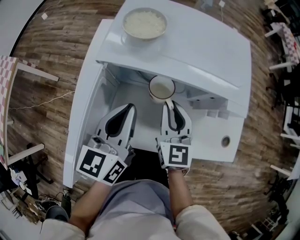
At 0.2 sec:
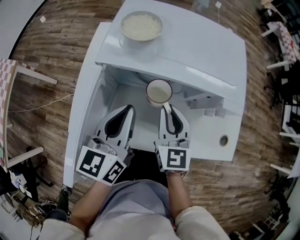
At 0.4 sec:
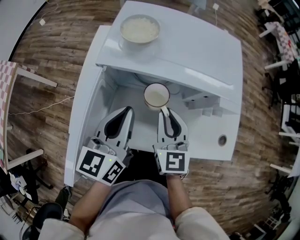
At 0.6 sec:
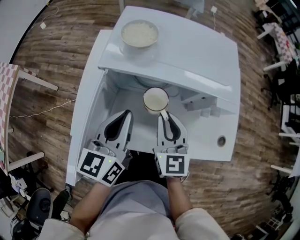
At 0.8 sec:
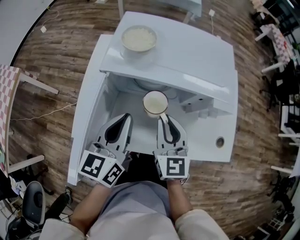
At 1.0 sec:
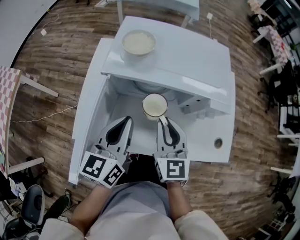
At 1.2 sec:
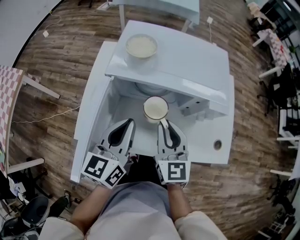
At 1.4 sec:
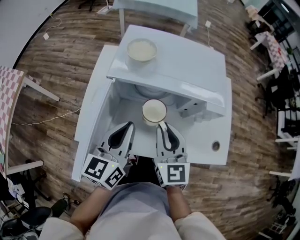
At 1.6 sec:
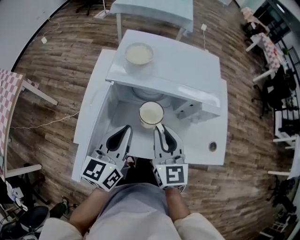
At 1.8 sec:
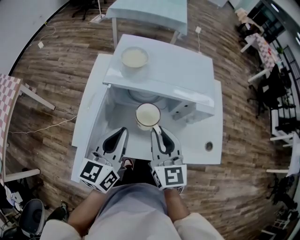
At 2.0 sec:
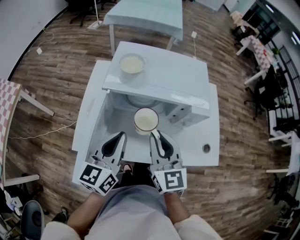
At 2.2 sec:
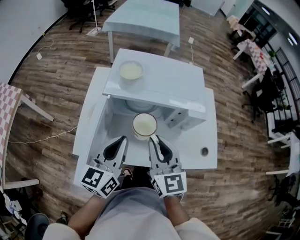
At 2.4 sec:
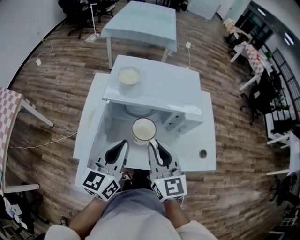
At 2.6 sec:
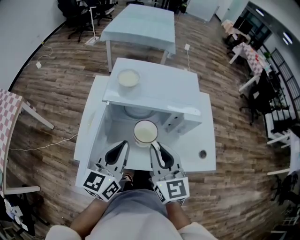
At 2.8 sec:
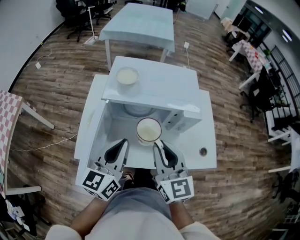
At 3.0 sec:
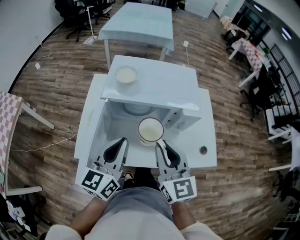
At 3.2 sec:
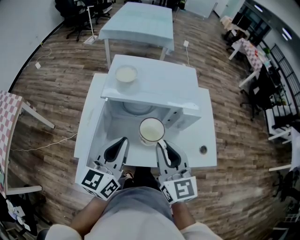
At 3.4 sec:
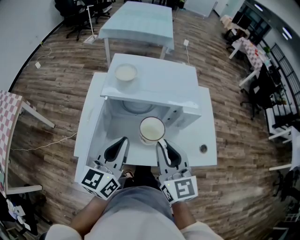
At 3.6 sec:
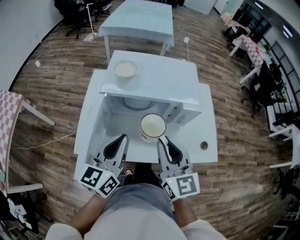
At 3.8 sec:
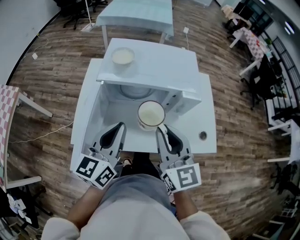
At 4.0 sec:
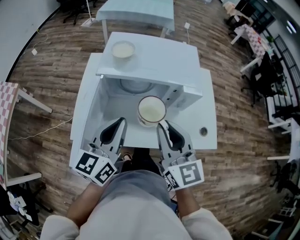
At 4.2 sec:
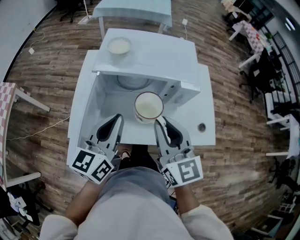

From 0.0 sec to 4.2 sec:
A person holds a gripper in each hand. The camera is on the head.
From 0.0 sec to 1.4 sec: The left gripper changes place by approximately 5 cm, while the right gripper shifts approximately 10 cm upward and backward.
From 1.4 sec to 2.8 sec: The left gripper moves upward, approximately 5 cm, while the right gripper goes roughly 10 cm upward and backward.
From 2.8 sec to 4.2 sec: The grippers stay close to where they were, moving slightly.

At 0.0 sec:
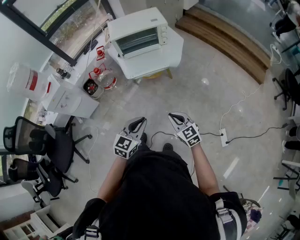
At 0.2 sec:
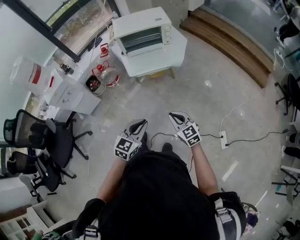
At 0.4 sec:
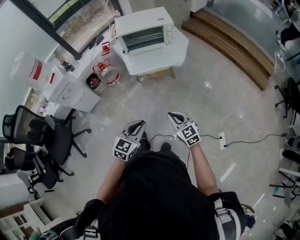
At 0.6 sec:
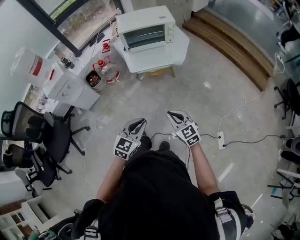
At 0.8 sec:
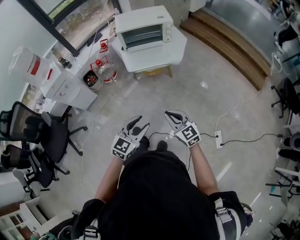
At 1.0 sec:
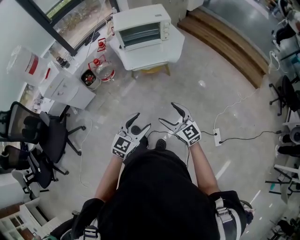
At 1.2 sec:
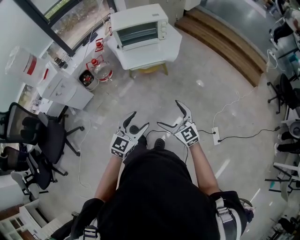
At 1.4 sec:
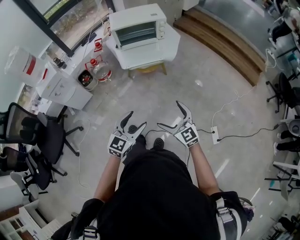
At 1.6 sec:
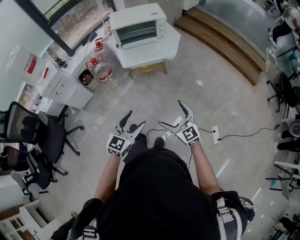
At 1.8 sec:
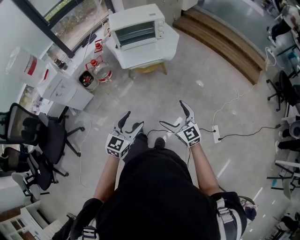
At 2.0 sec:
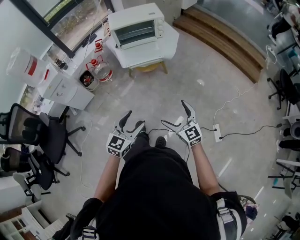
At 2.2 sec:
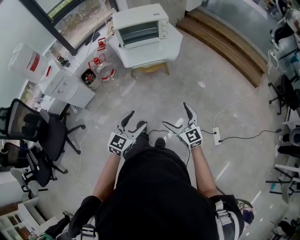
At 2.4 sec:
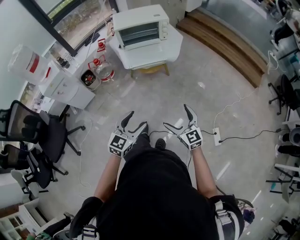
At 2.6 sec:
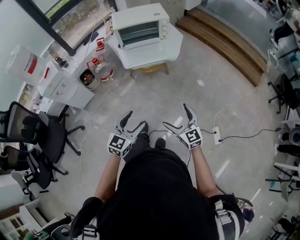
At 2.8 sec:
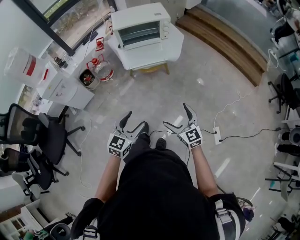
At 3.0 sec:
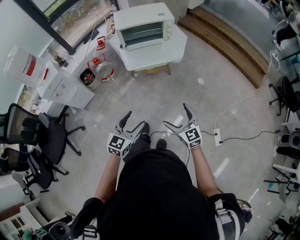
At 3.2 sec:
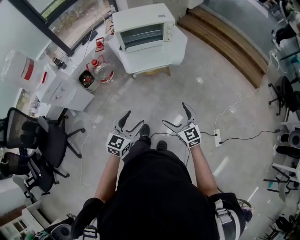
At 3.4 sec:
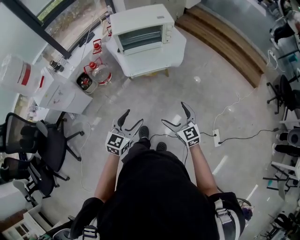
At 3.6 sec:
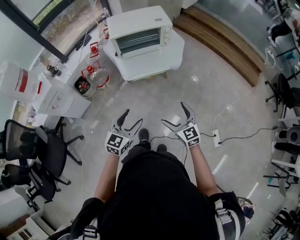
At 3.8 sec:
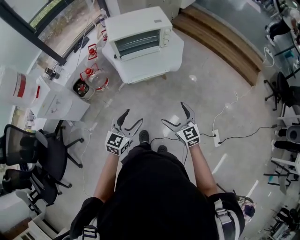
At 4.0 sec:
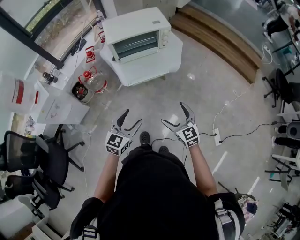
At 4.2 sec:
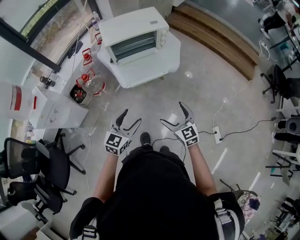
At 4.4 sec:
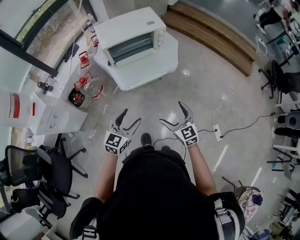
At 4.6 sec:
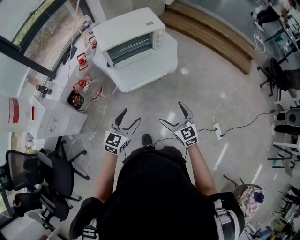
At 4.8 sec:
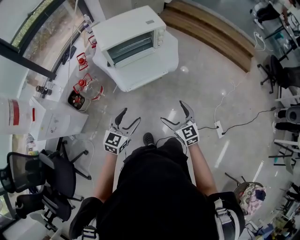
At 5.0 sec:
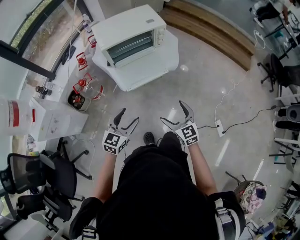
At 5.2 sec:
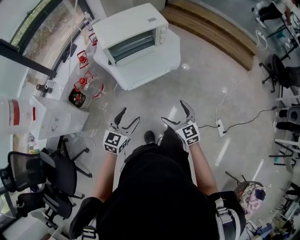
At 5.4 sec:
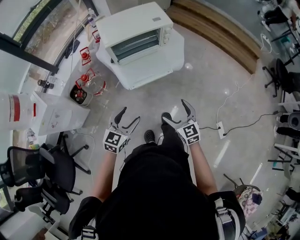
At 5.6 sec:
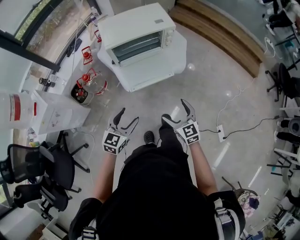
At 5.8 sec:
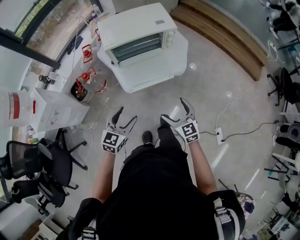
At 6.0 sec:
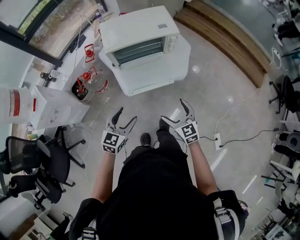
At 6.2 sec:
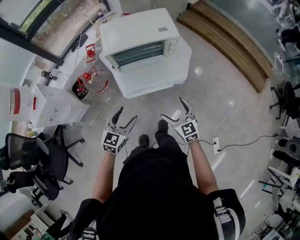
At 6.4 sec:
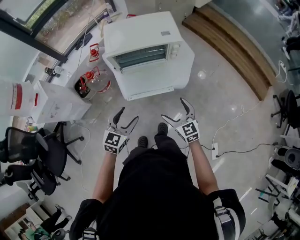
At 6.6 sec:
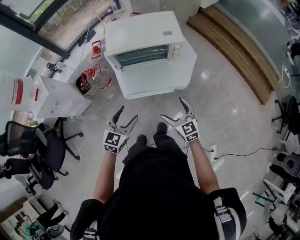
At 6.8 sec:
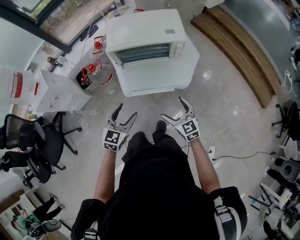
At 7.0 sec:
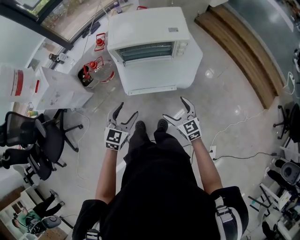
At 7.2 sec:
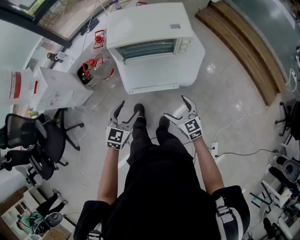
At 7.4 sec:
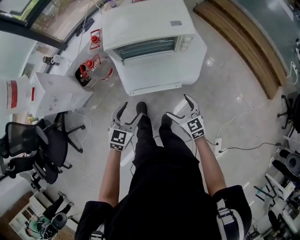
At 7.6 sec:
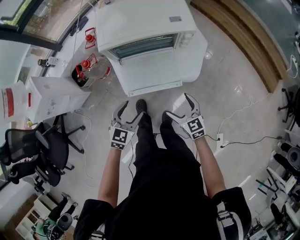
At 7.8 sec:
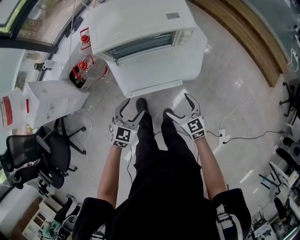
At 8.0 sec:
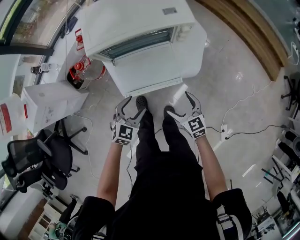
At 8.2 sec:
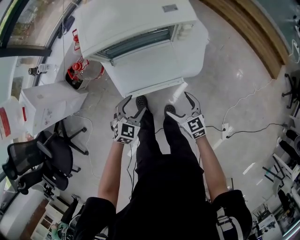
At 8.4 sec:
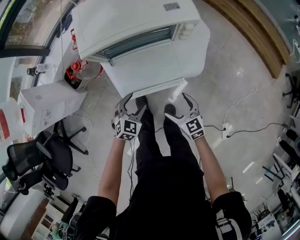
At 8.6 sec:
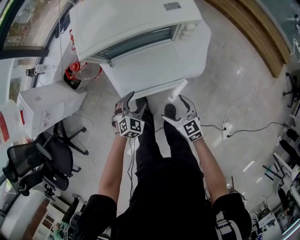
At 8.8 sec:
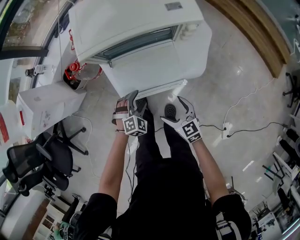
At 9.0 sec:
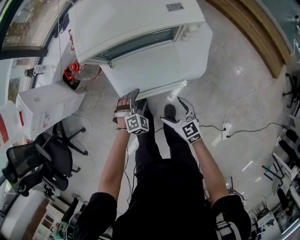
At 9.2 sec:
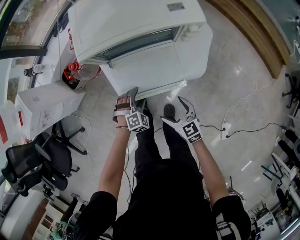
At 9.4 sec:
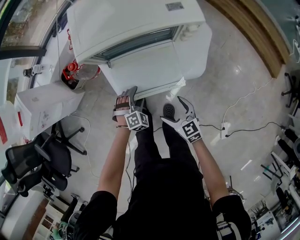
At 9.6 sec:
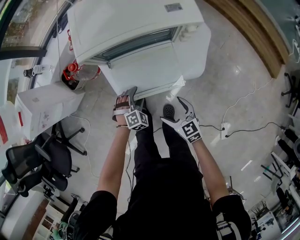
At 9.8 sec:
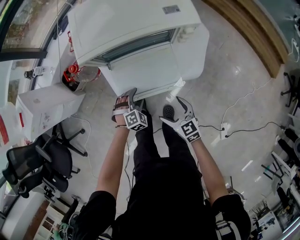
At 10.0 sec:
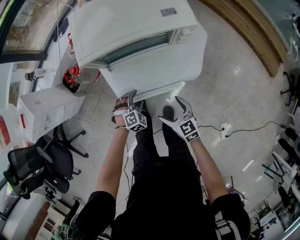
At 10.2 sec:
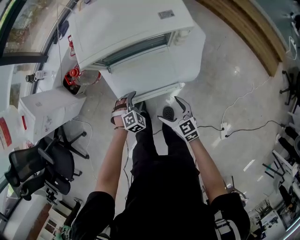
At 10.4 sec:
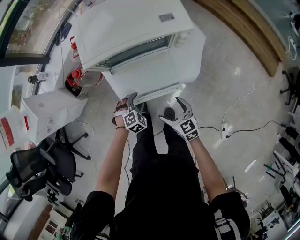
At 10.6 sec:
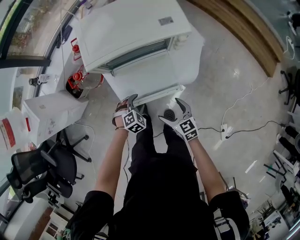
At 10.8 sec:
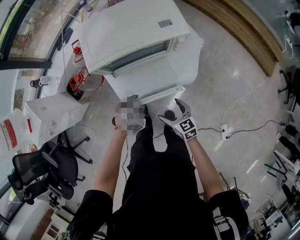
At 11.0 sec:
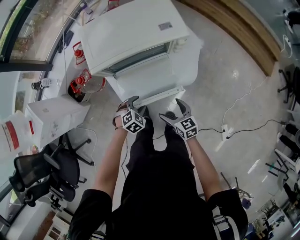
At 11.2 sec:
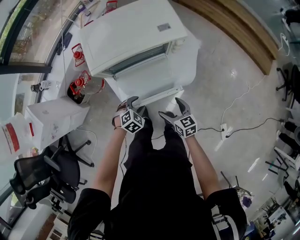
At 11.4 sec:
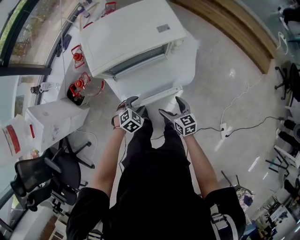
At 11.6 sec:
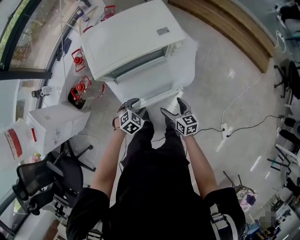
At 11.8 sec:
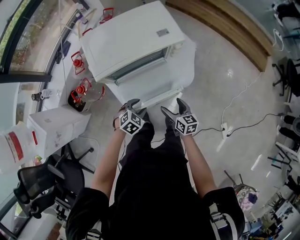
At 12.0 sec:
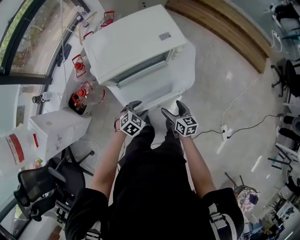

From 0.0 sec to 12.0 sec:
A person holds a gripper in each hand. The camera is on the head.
From 0.0 sec to 1.6 sec: The two grippers go about 10 cm backward. The left gripper opens its fingers; the right gripper opens its fingers.
From 1.6 sec to 3.0 sec: The two grippers go some 5 cm forward.
From 3.0 sec to 4.4 sec: Both grippers move forward and to the left, about 20 cm.
From 4.4 sec to 6.0 sec: Both grippers move forward, some 15 cm.
From 6.0 sec to 7.6 sec: The right gripper is displaced forward and downward by roughly 15 cm. The left gripper travels forward, downward and to the right by about 15 cm.
From 7.6 sec to 9.0 sec: The right gripper shifts approximately 10 cm downward, while the left gripper is displaced downward and forward by about 20 cm, and rotates around the line of its fingers by some 40 degrees, clockwise from behind.
From 9.0 sec to 10.4 sec: The grippers move only a little.
From 10.4 sec to 12.0 sec: The left gripper is displaced upward by some 10 cm, and swivels about 20 degrees. Meanwhile the right gripper rotates approximately 30 degrees.

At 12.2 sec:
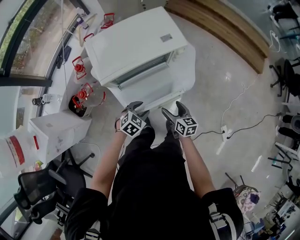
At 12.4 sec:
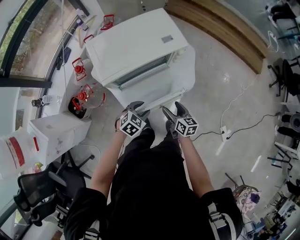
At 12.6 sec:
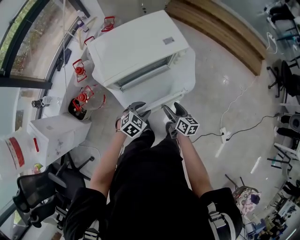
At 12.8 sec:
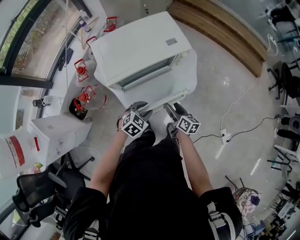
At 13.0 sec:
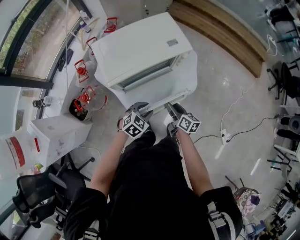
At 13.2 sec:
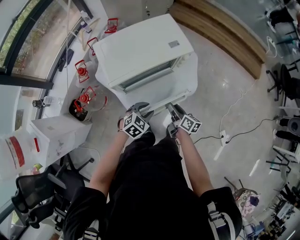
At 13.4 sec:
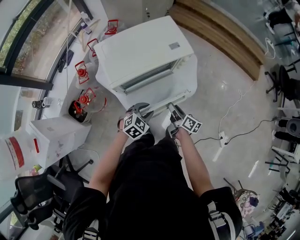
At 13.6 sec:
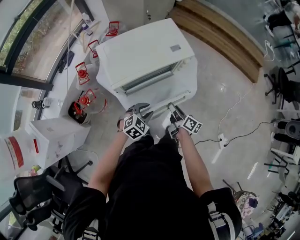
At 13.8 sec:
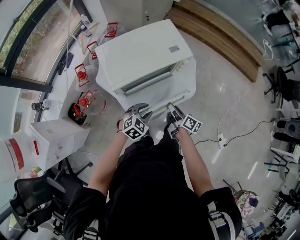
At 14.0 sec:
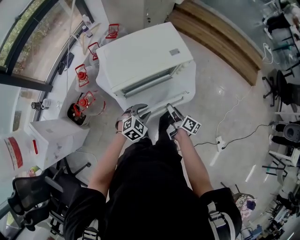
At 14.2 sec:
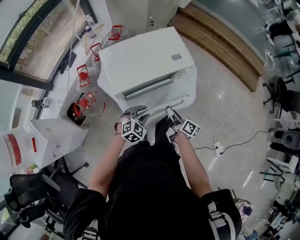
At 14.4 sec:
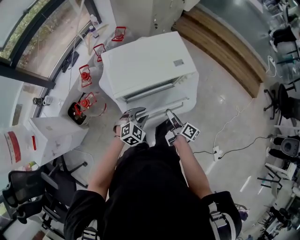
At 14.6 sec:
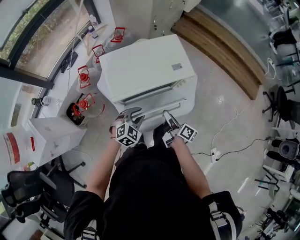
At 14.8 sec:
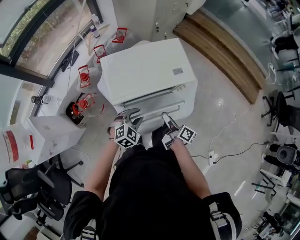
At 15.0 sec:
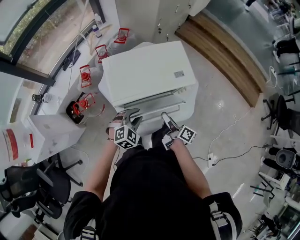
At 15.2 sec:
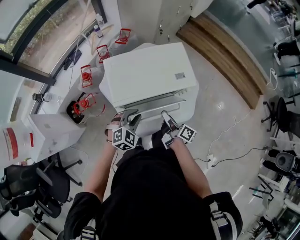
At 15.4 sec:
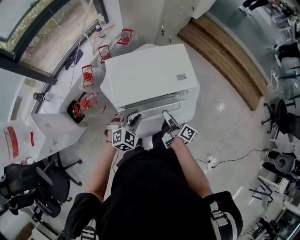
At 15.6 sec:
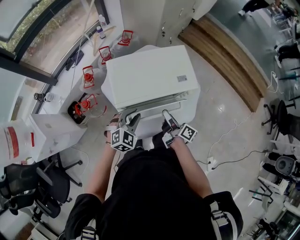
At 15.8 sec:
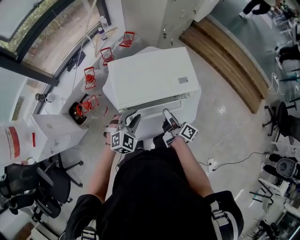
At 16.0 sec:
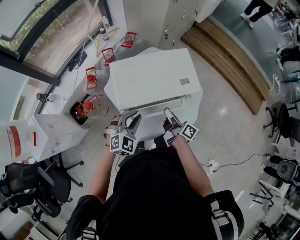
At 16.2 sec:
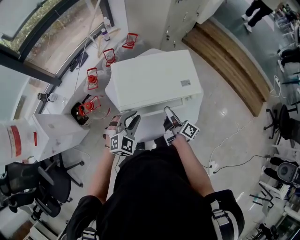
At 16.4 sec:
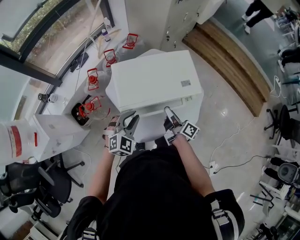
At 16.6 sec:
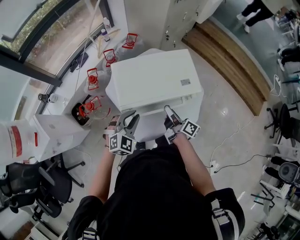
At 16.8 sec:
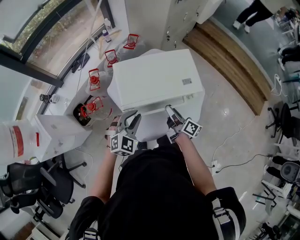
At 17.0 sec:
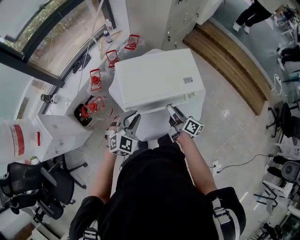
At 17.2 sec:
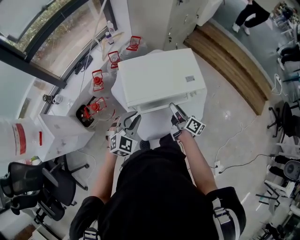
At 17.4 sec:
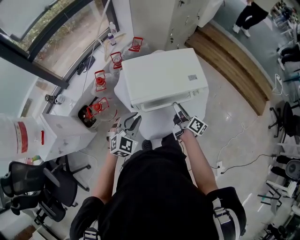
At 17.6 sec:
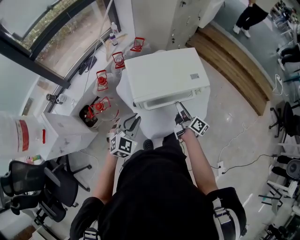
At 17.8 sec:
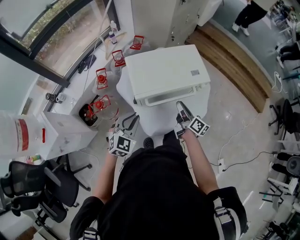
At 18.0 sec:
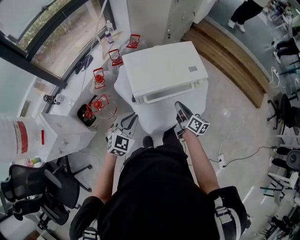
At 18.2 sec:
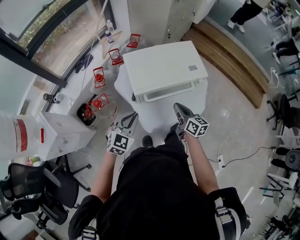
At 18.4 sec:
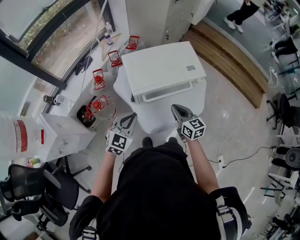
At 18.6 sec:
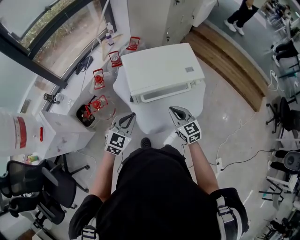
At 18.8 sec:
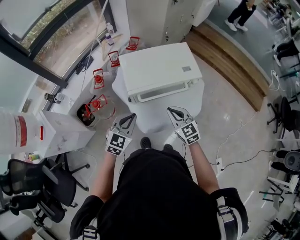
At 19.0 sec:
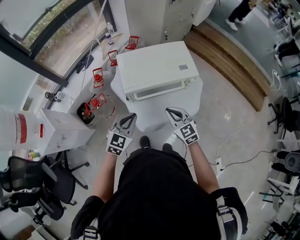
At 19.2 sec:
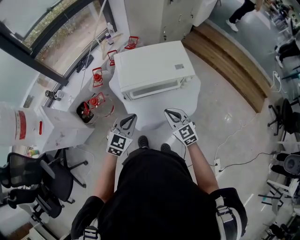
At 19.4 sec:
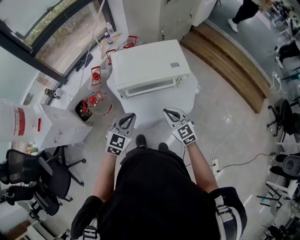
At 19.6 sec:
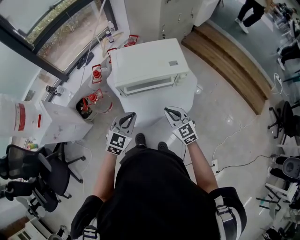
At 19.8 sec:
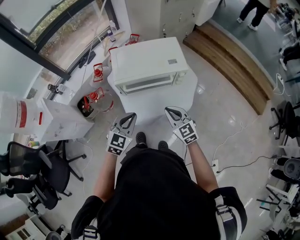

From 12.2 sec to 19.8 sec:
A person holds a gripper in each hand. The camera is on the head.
From 12.2 sec to 13.8 sec: The right gripper shifts by roughly 5 cm, turns by roughly 40 degrees, and closes its fingers. Meanwhile the left gripper shifts by about 5 cm.
From 13.8 sec to 15.2 sec: The left gripper goes some 15 cm forward, upward and to the left. Meanwhile the right gripper heads forward and upward, covering about 10 cm.
From 15.2 sec to 16.8 sec: The left gripper heads upward, covering approximately 5 cm. Meanwhile the right gripper shifts by about 5 cm.
From 16.8 sec to 18.2 sec: The left gripper goes some 15 cm backward and to the left, while the right gripper goes about 10 cm backward, and turns by some 30 degrees.
From 18.2 sec to 19.8 sec: The left gripper travels to the right and backward by some 20 cm; the right gripper moves backward, to the right and upward, roughly 15 cm, and rolls counterclockwise, seen from behind, by roughly 50 degrees.
